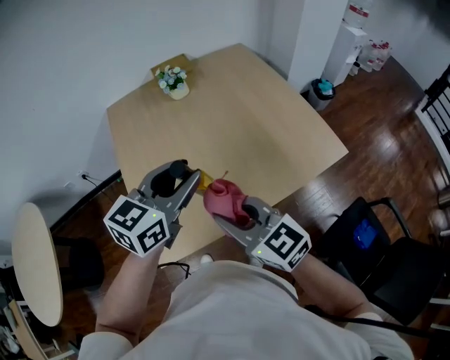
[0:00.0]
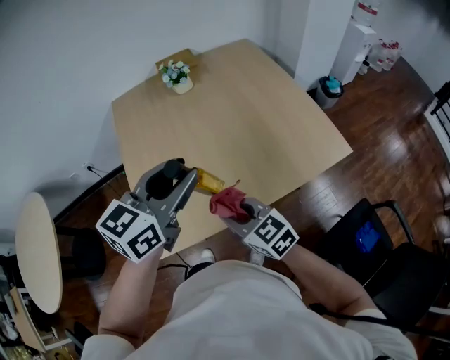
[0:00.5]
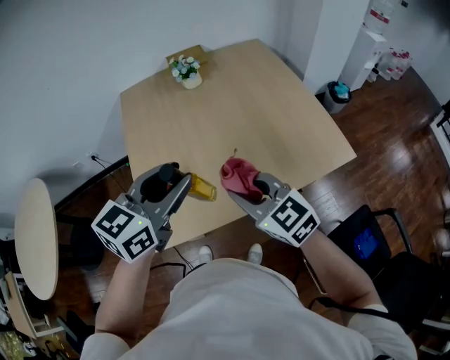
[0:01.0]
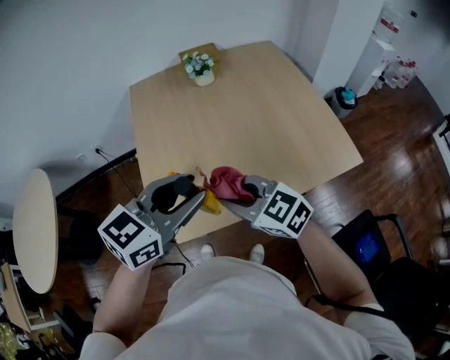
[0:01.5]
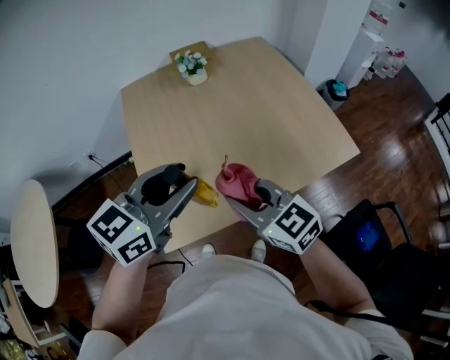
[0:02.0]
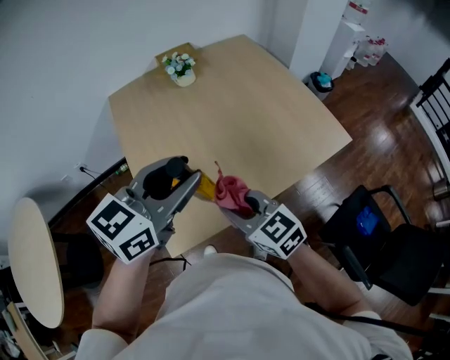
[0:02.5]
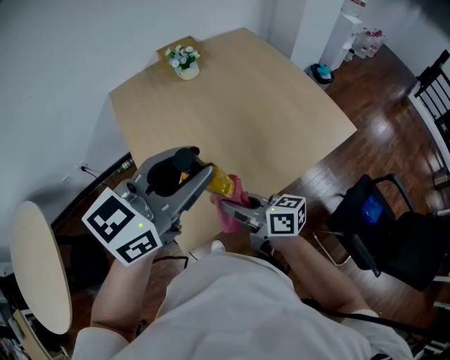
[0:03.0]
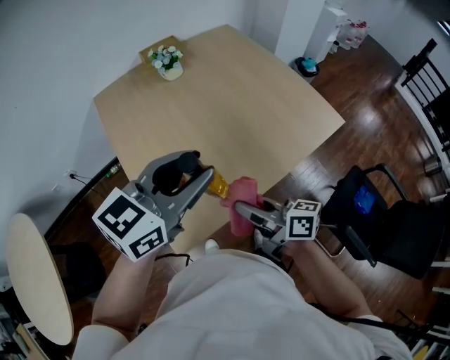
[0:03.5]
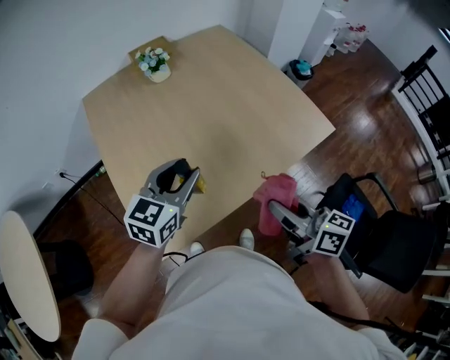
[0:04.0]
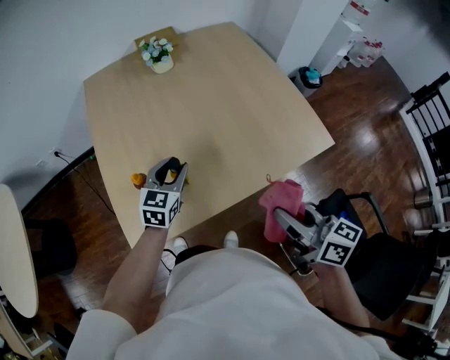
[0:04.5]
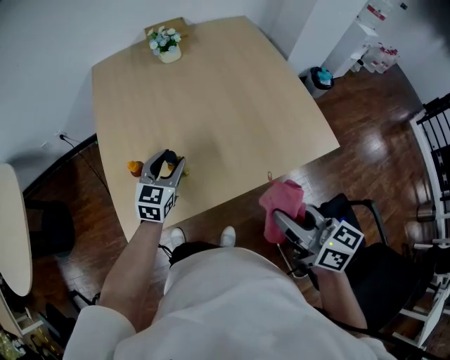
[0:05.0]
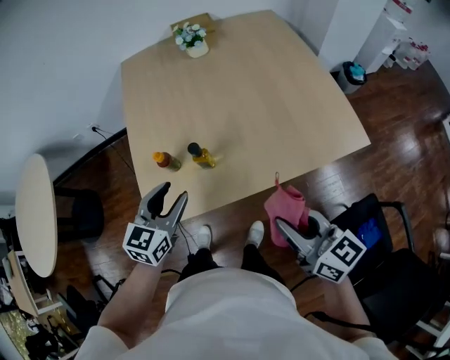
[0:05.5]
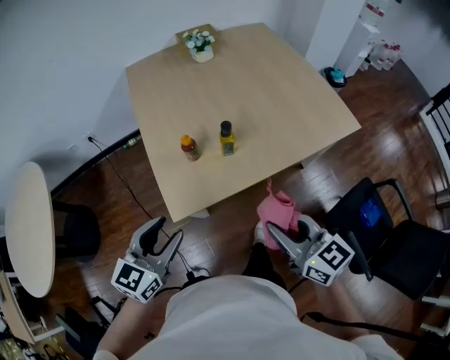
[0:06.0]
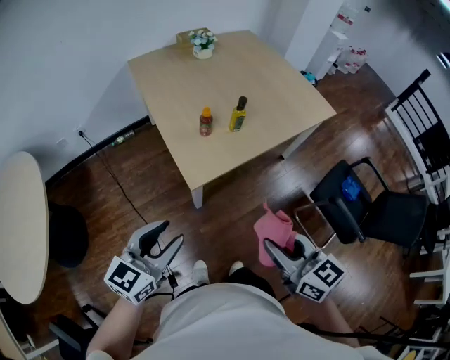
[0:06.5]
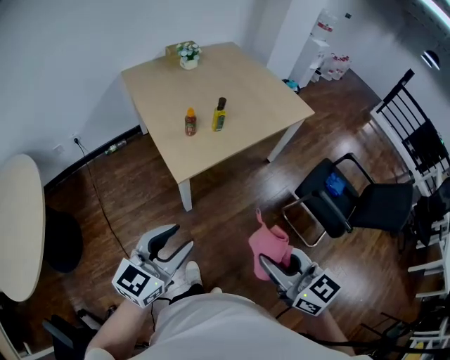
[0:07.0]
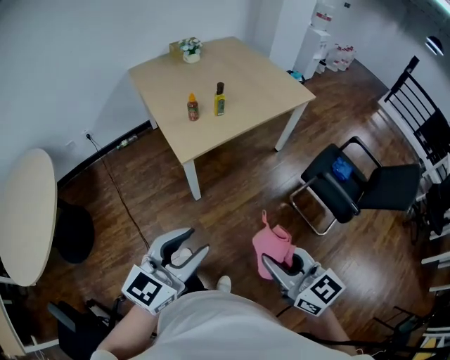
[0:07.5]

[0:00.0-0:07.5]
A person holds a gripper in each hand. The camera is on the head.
0:00.0 to 0:02.0: The left gripper heads to the left, covering roughly 5 cm, while the right gripper reaches some 10 cm downward, then returns.
0:02.0 to 0:04.0: The left gripper shifts roughly 15 cm downward and forward. Meanwhile the right gripper is displaced to the right by some 10 cm, and rolls clockwise, seen from behind, by approximately 40 degrees.
0:04.0 to 0:05.5: The left gripper shifts some 10 cm backward and downward, and swivels about 20 degrees, while the right gripper moves some 5 cm, and turns by roughly 20 degrees.
0:05.5 to 0:07.5: Both grippers are carried roughly 60 cm. The right gripper swivels roughly 20 degrees, while the left gripper changes its angle by some 30 degrees.

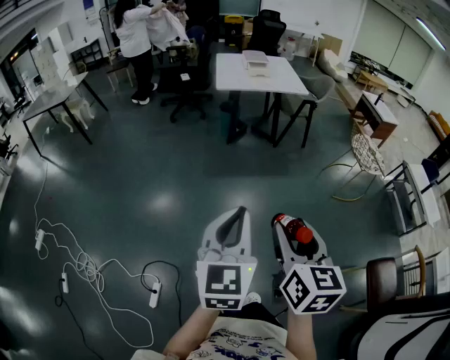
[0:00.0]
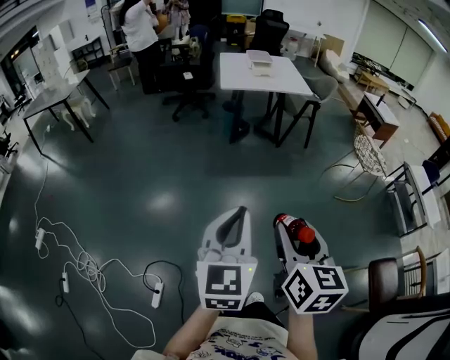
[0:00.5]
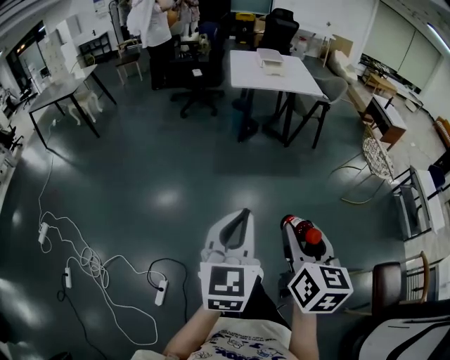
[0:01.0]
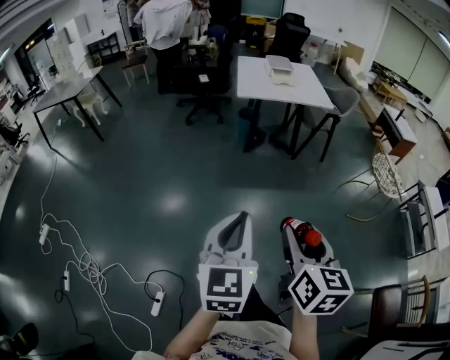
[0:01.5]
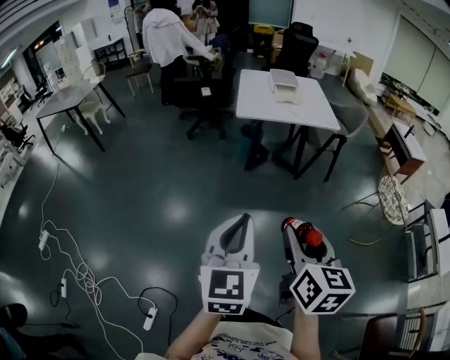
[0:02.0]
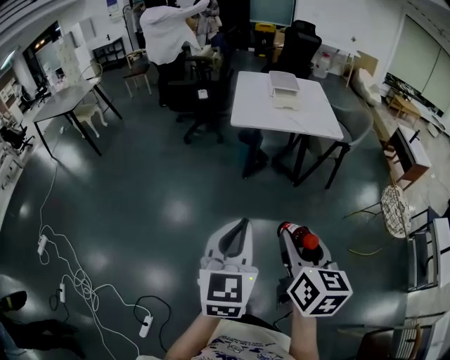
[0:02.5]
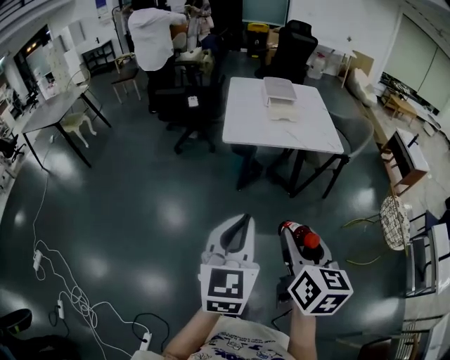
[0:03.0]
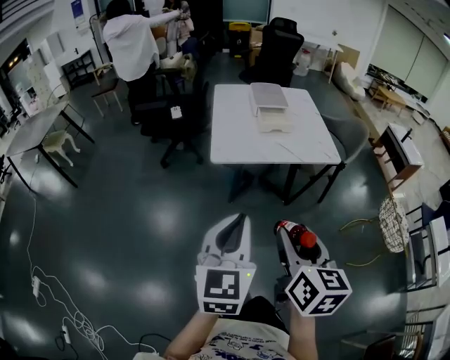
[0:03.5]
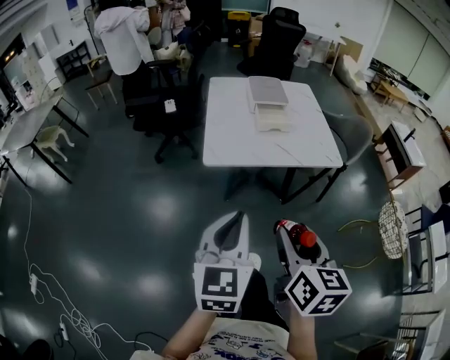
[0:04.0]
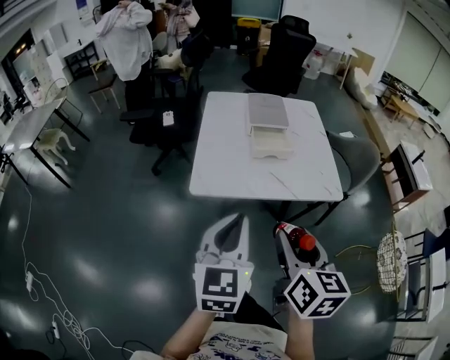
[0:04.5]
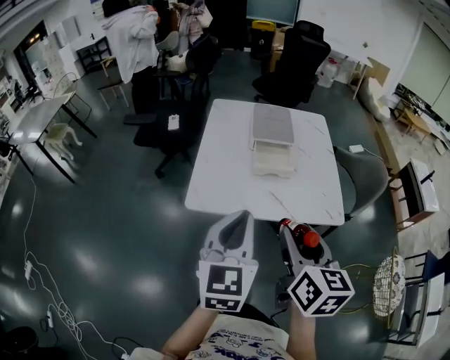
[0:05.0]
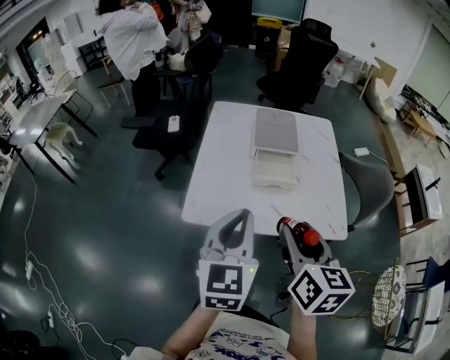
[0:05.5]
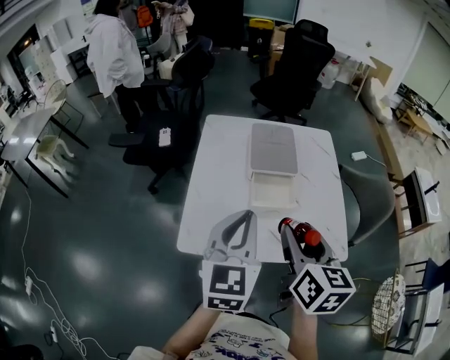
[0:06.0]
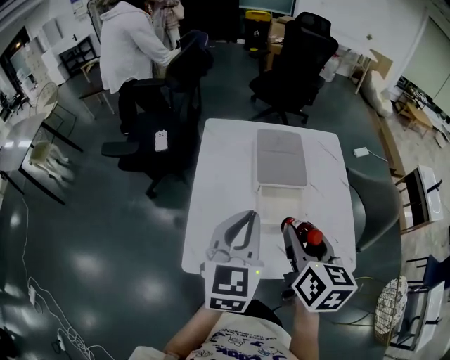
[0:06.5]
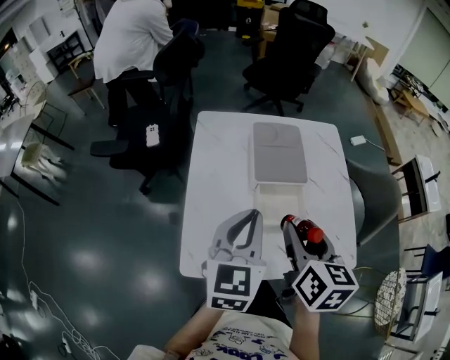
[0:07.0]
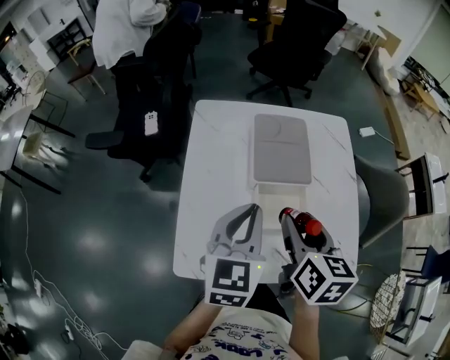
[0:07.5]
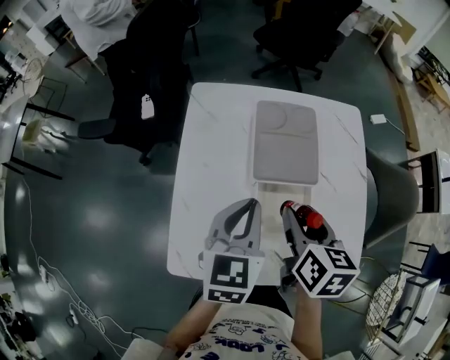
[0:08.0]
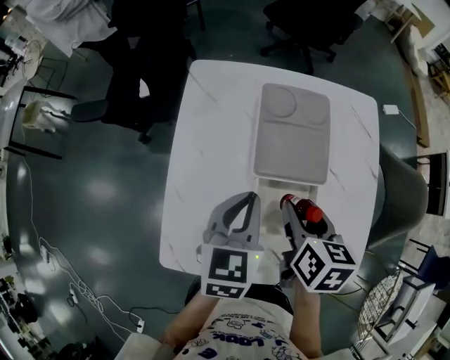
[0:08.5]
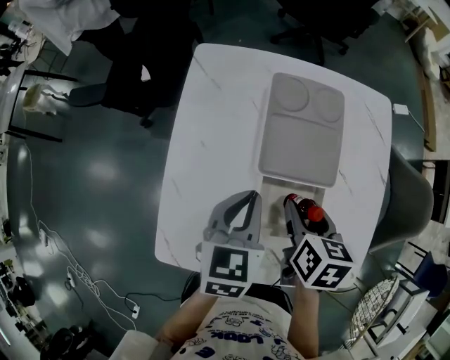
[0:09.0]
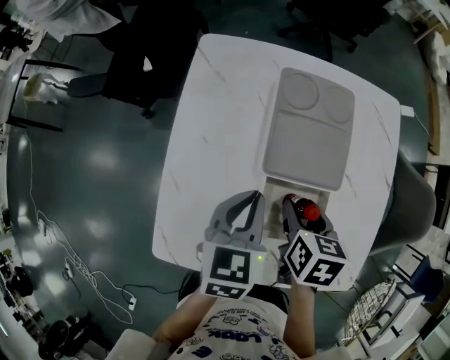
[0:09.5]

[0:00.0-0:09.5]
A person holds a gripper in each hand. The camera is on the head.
0:00.0 to 0:02.0: The grippers both shift forward by roughly 25 cm.
0:02.0 to 0:04.0: Both grippers are carried forward, roughly 40 cm.
0:04.0 to 0:05.5: Both grippers move forward, roughly 30 cm.
0:05.5 to 0:07.5: The grippers both shift forward by approximately 25 cm.
0:07.5 to 0:09.5: Both grippers travel together downward and forward, about 15 cm. The right gripper swivels about 30 degrees; the left gripper swivels approximately 20 degrees.

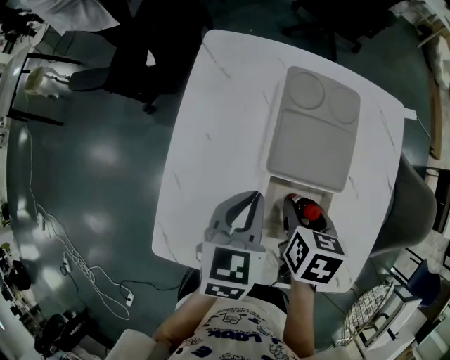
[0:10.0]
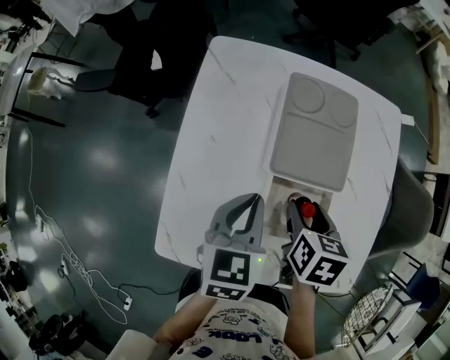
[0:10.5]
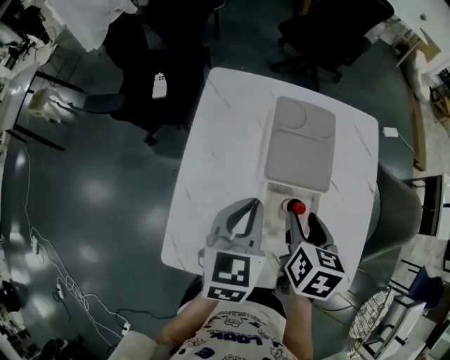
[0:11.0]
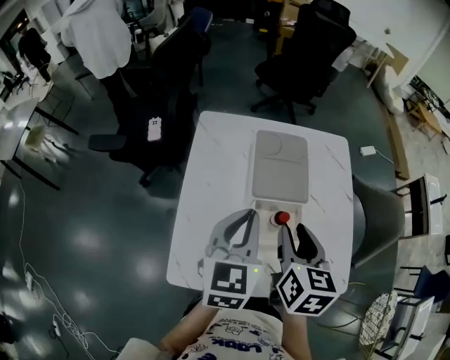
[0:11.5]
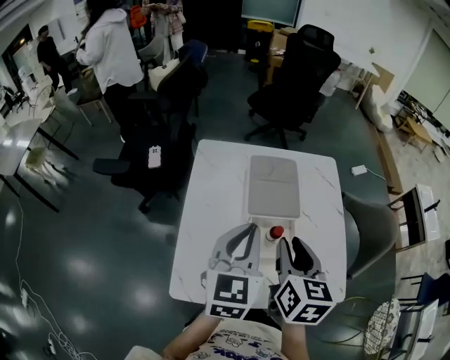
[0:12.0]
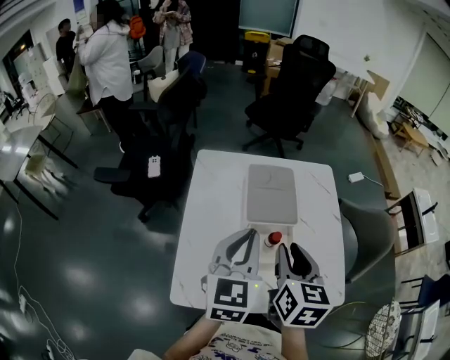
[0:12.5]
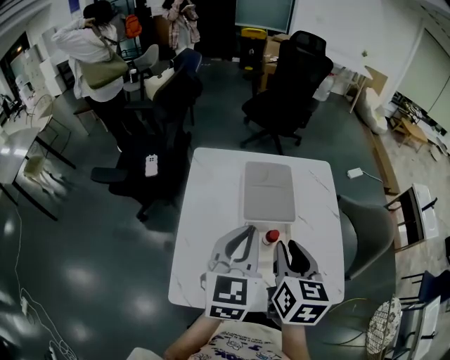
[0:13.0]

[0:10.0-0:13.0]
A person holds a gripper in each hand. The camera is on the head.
0:10.0 to 0:11.5: Both grippers travel together upward, roughly 15 cm. The right gripper swivels some 30 degrees; the left gripper rotates approximately 20 degrees.
0:11.5 to 0:13.0: The left gripper shifts approximately 5 cm upward.

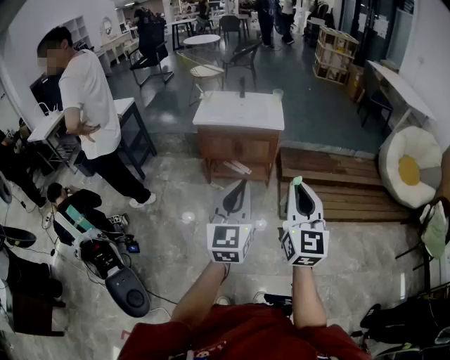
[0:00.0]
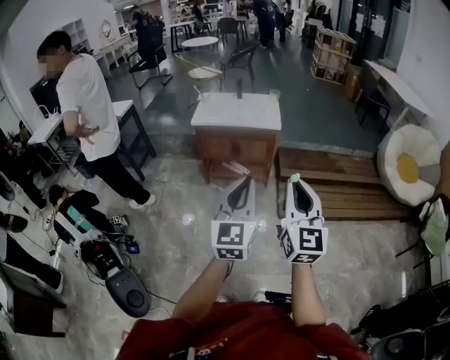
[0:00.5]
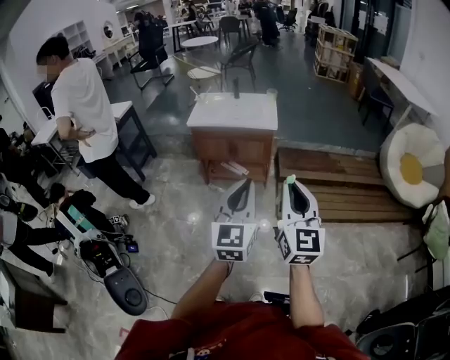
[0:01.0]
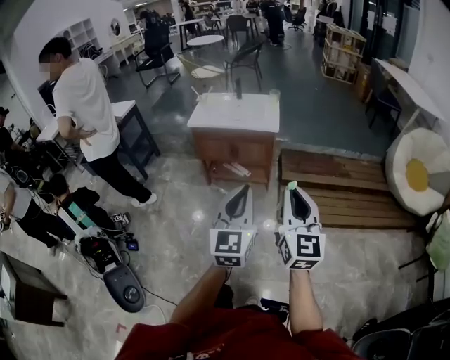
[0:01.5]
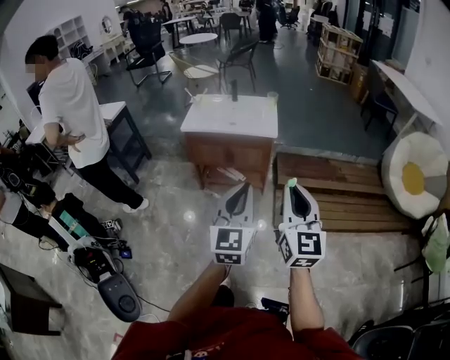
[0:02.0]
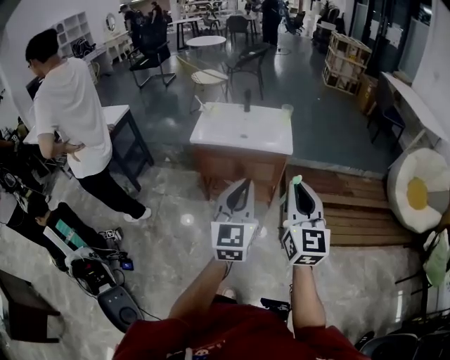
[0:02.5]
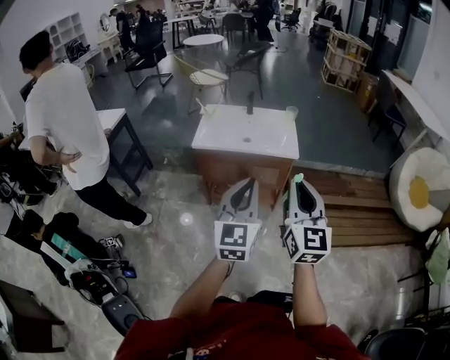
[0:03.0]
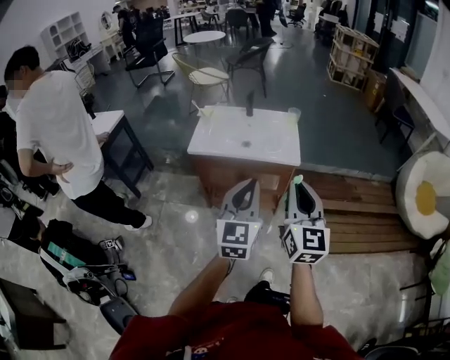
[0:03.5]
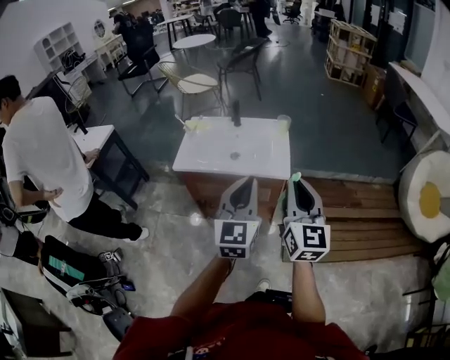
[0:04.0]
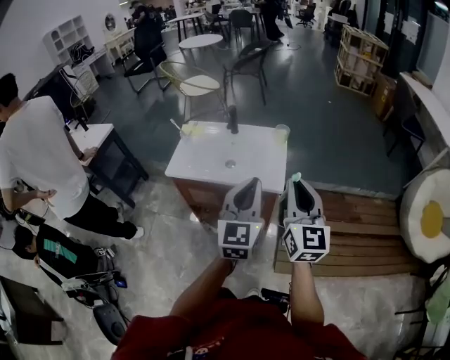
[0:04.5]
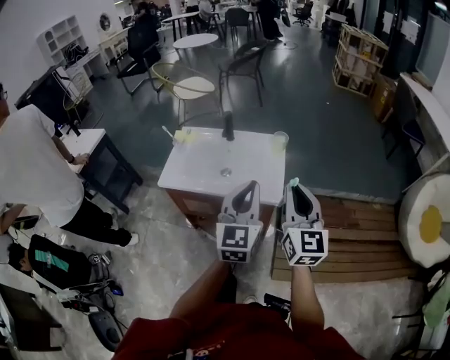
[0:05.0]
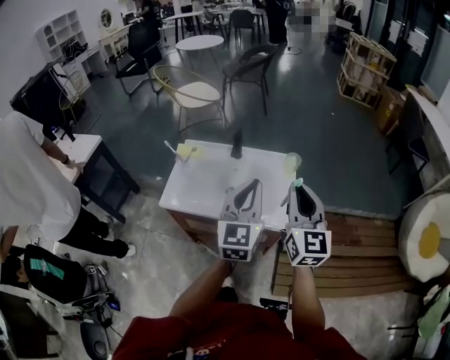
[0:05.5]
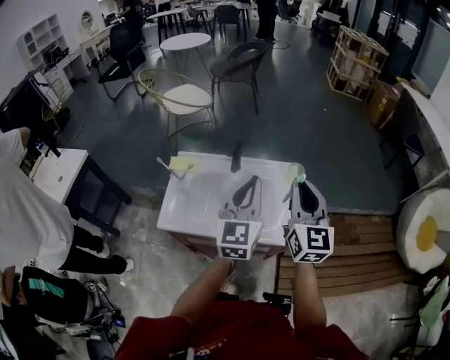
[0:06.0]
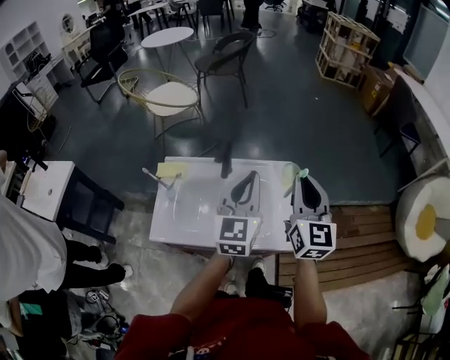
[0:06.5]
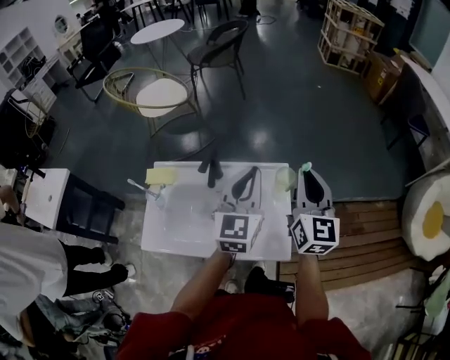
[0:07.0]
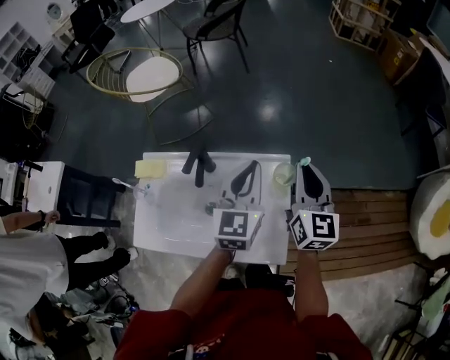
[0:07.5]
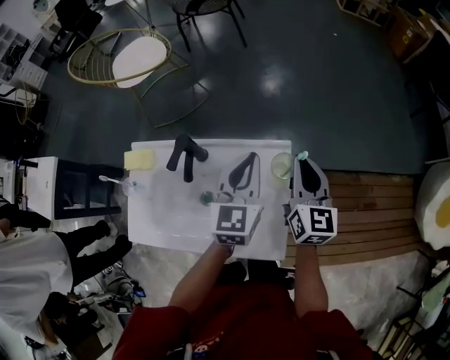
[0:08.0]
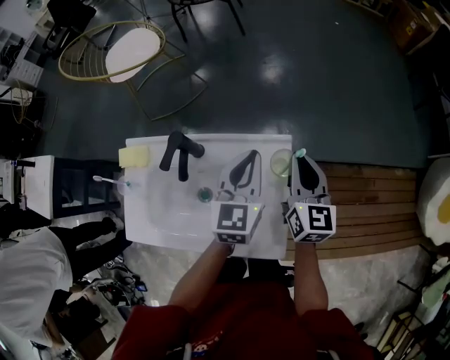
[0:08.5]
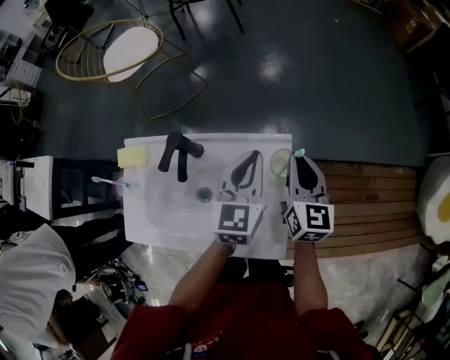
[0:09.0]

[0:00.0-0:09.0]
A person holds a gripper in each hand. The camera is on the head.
0:00.0 to 0:02.0: Both grippers move forward and to the right, approximately 10 cm.
0:02.0 to 0:04.5: Both grippers are carried forward, some 40 cm.
0:04.5 to 0:07.0: Both grippers are carried forward, roughly 40 cm.
0:07.0 to 0:09.0: The left gripper travels downward, forward and to the right by roughly 20 cm. The right gripper shifts approximately 20 cm downward and forward, and swivels roughly 20 degrees.
